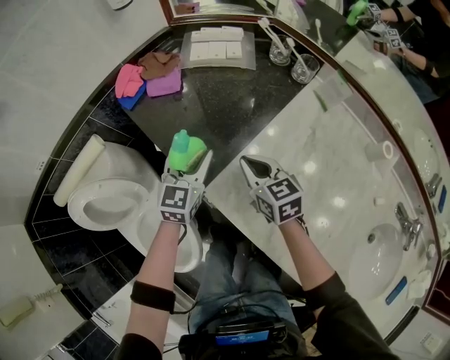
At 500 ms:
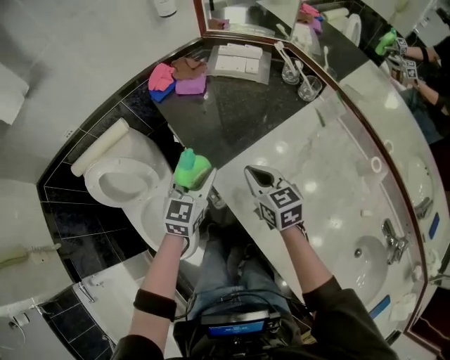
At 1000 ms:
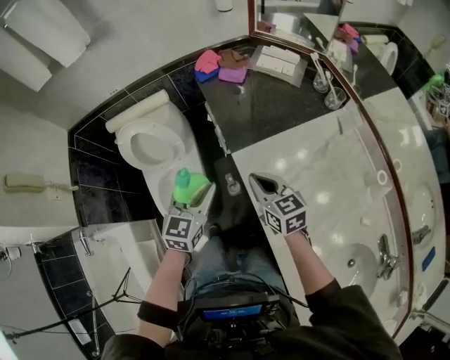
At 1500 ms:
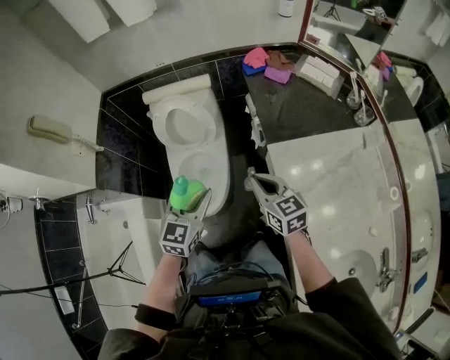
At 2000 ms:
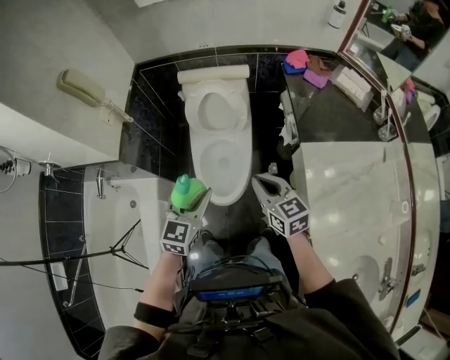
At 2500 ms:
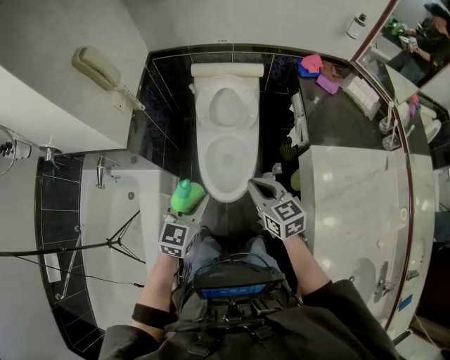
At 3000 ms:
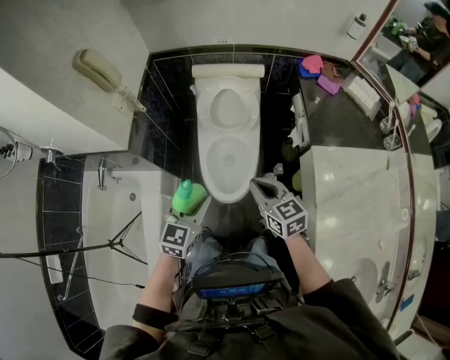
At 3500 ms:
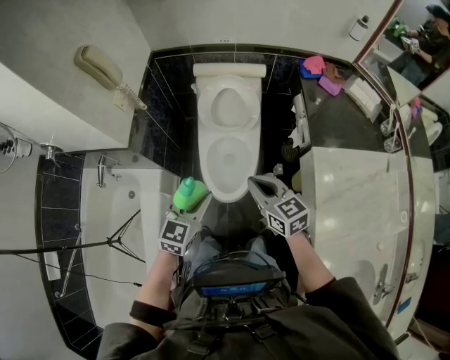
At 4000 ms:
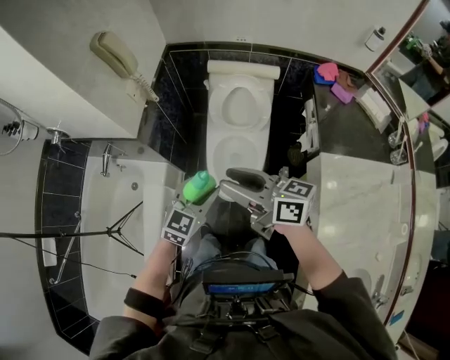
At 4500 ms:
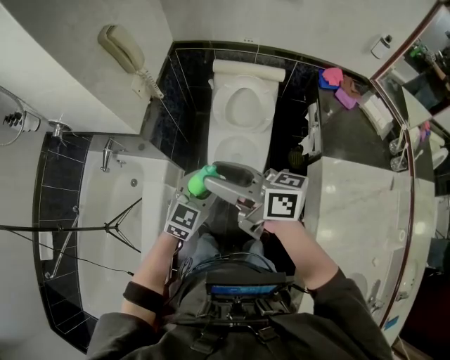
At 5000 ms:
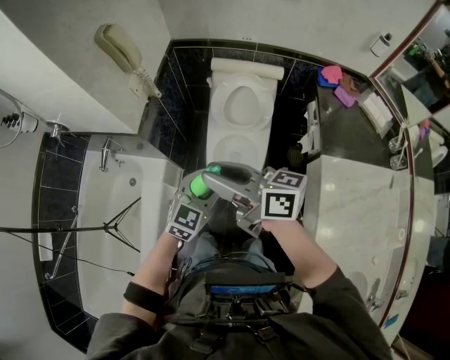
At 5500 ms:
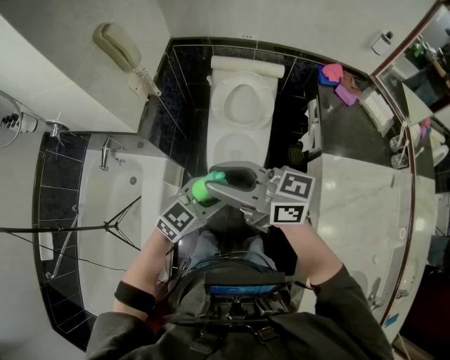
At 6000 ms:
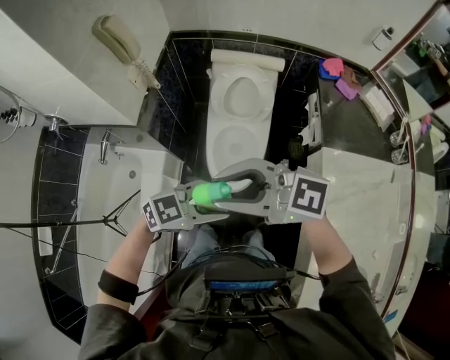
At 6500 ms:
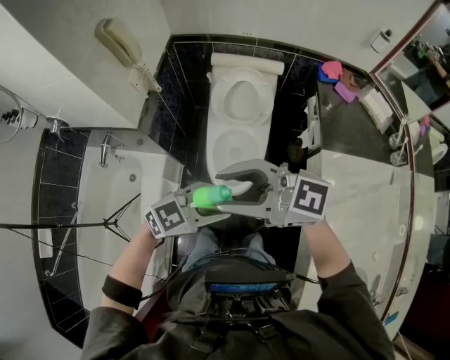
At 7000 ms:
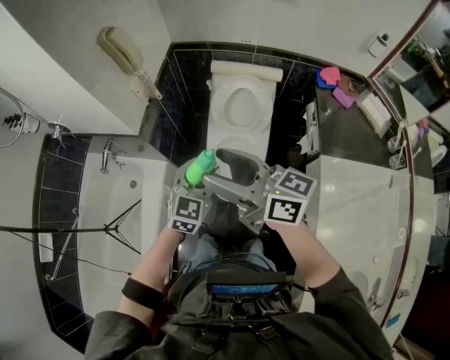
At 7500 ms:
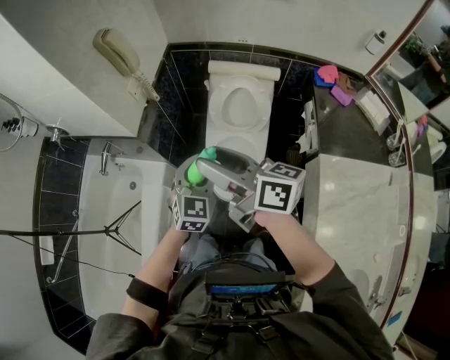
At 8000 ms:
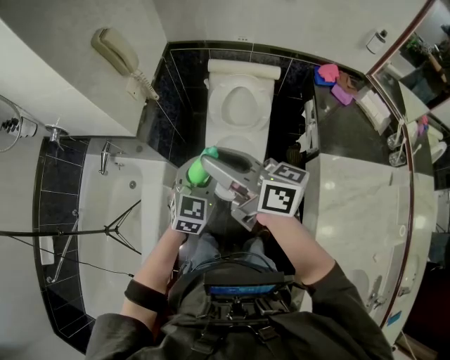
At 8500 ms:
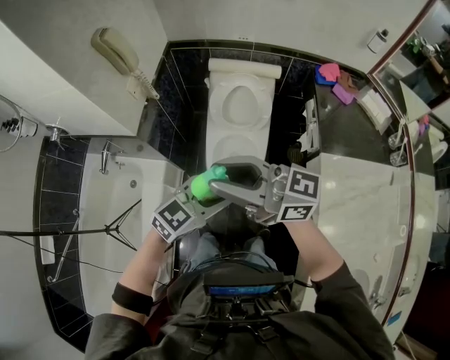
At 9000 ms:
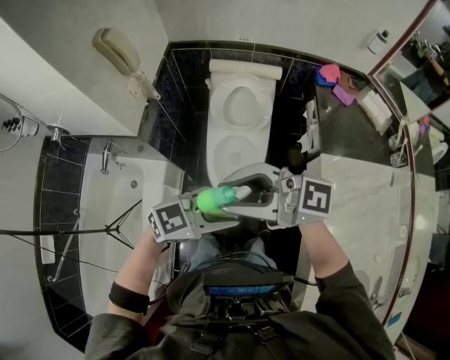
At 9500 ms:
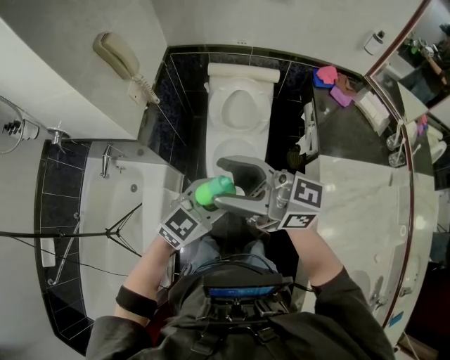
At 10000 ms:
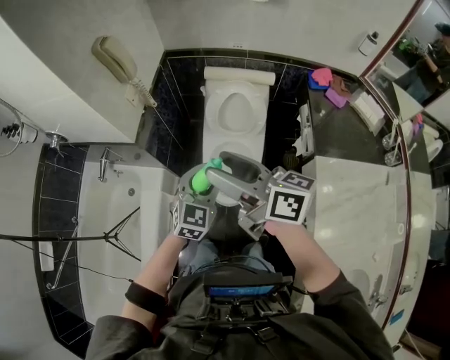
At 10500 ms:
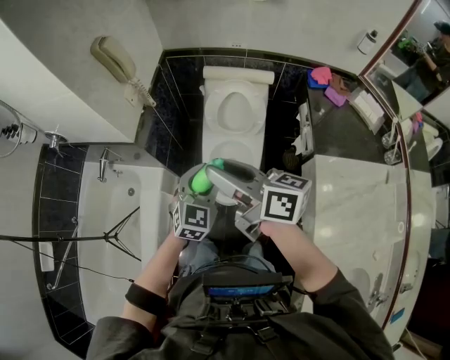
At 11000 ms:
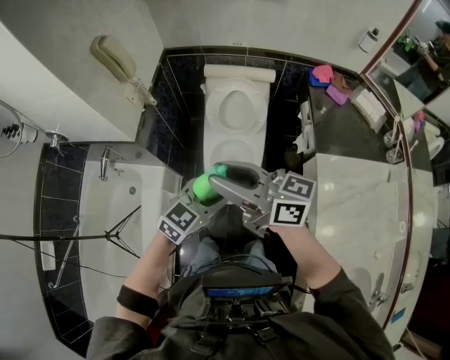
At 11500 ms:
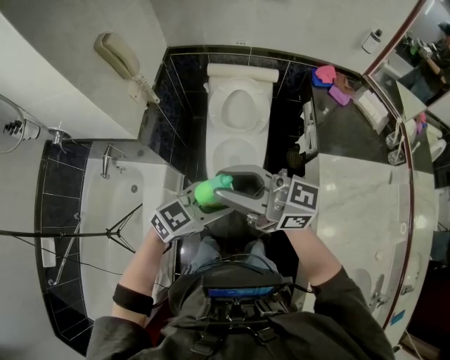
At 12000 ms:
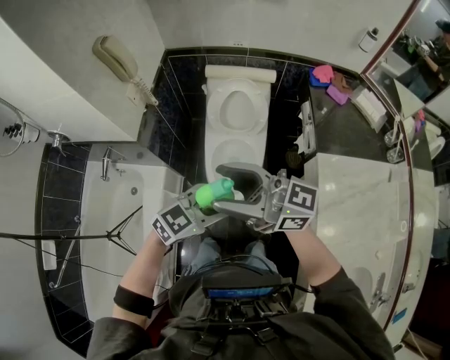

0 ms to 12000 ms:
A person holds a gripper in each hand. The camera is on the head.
0 ms to 2000 ms: The pair of grippers is taken approximately 50 cm. The right gripper changes its angle by approximately 40 degrees; the left gripper turns by roughly 40 degrees.
2000 ms to 4000 ms: The left gripper travels to the left by roughly 5 cm; the right gripper travels to the left and upward by roughly 20 cm, changes its angle by roughly 40 degrees, and opens up.
4000 ms to 6000 ms: The right gripper travels upward by roughly 10 cm, and rotates some 50 degrees; the left gripper changes place by roughly 10 cm, and swivels about 50 degrees.
6000 ms to 8000 ms: The right gripper shifts by some 10 cm, changes its angle by roughly 50 degrees, and opens and closes again; the left gripper shifts by approximately 15 cm, and rotates about 60 degrees.
8000 ms to 10000 ms: The right gripper opens.
10000 ms to 12000 ms: The right gripper moves roughly 5 cm, swivels some 30 degrees, and closes and opens again. Meanwhile the left gripper changes place by some 10 cm, and swivels roughly 40 degrees.

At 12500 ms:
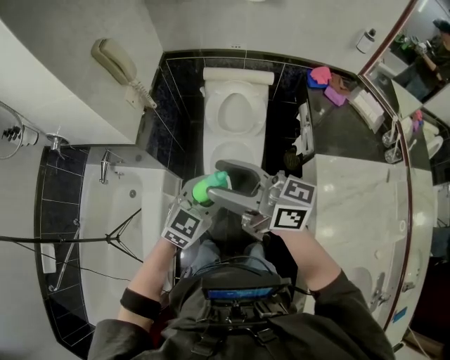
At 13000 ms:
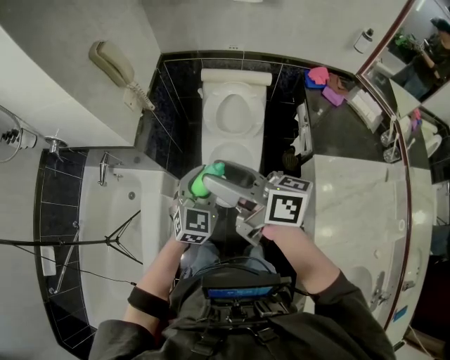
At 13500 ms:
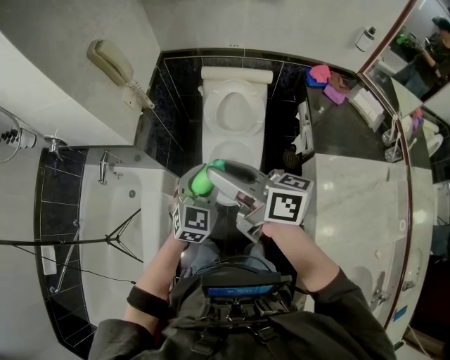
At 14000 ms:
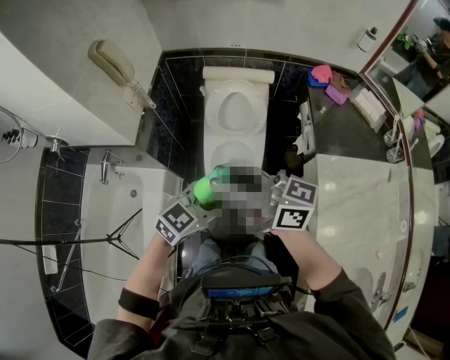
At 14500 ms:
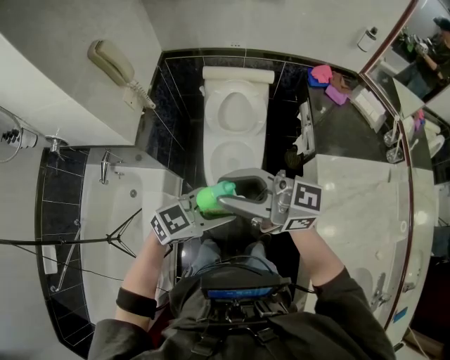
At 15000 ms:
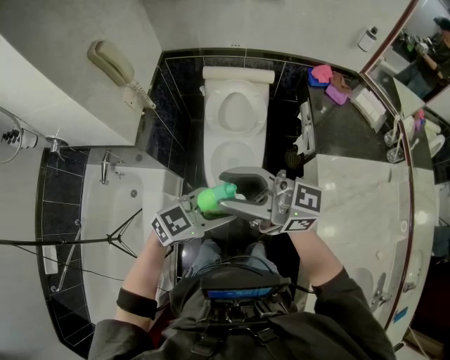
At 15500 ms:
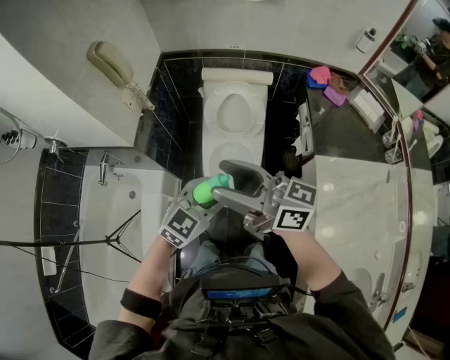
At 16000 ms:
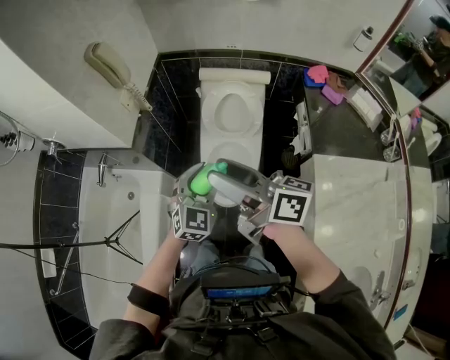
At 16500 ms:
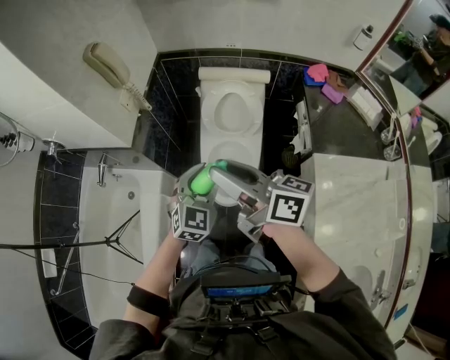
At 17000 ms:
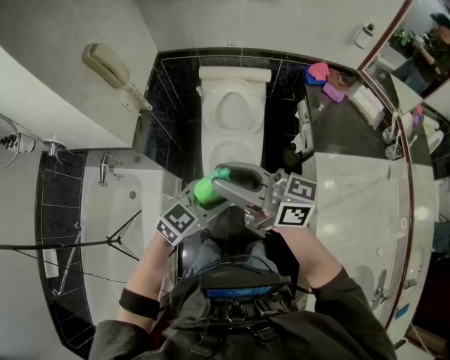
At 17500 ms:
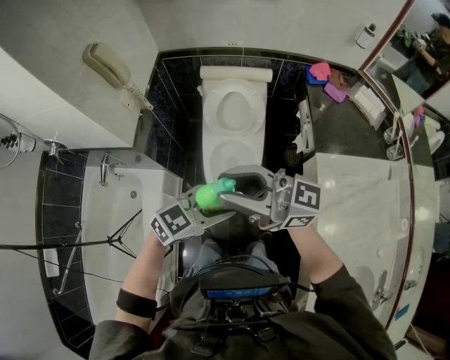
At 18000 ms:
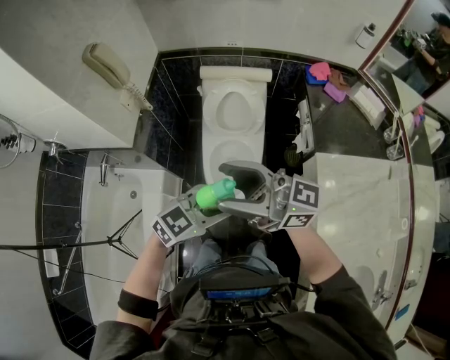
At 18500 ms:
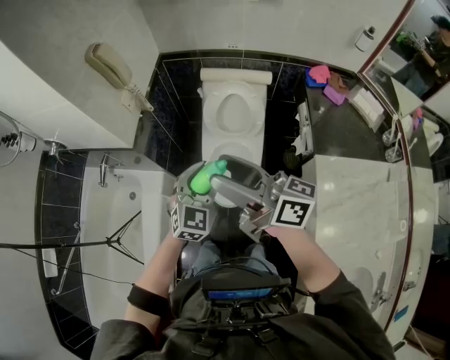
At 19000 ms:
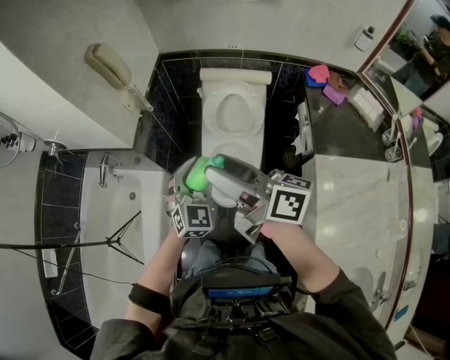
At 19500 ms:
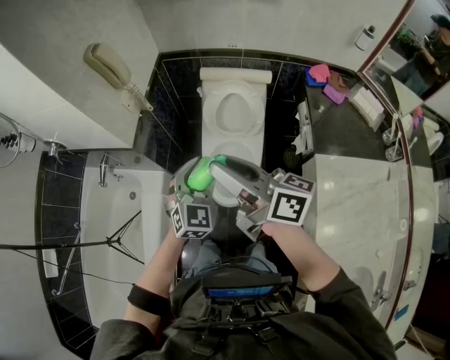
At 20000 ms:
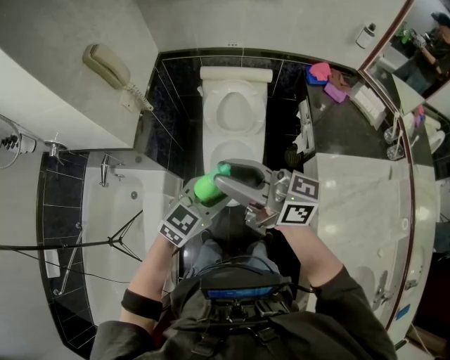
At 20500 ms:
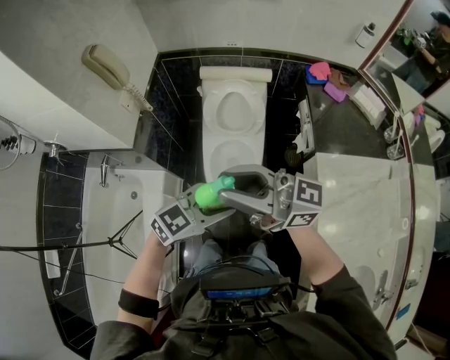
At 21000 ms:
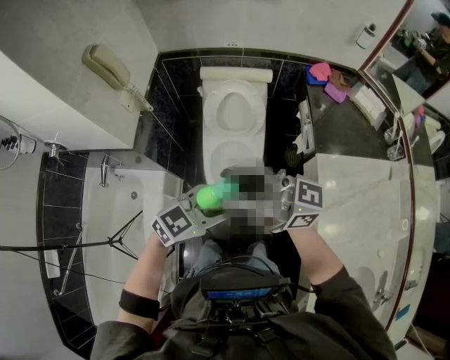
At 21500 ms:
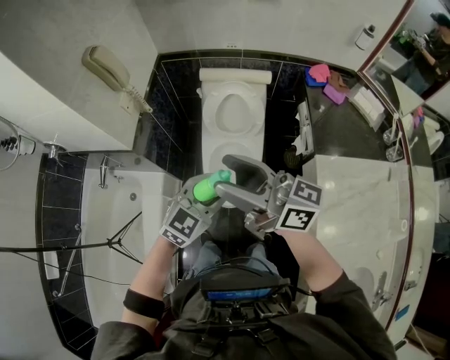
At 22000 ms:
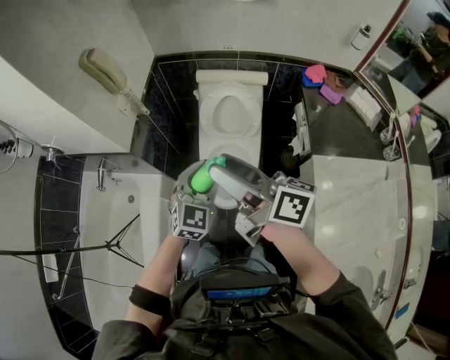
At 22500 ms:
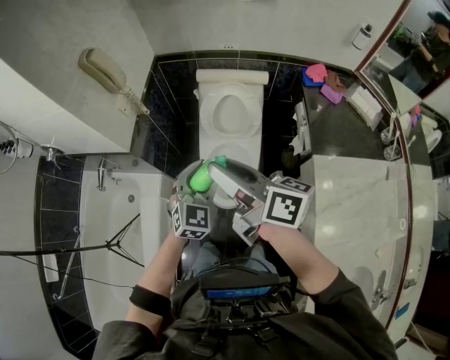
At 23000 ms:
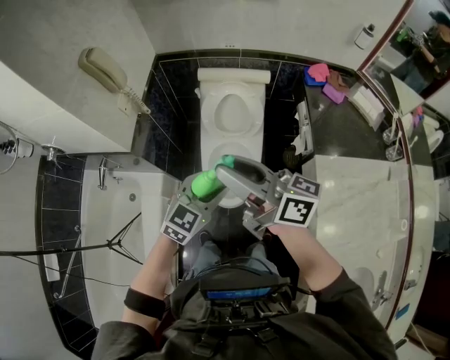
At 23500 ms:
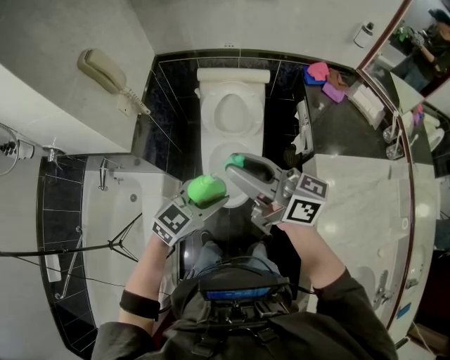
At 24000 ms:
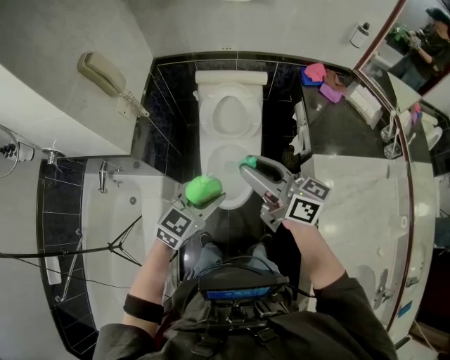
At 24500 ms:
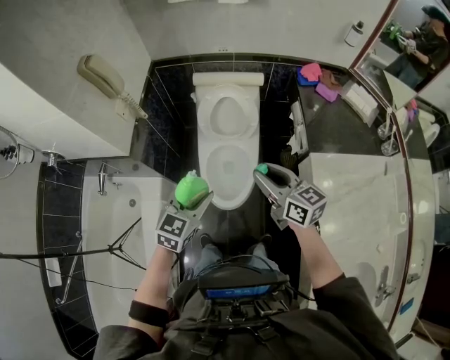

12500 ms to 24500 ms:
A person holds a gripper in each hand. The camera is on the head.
12500 ms to 14500 ms: The right gripper closes its fingers, while the left gripper moves roughly 5 cm, and swivels approximately 30 degrees.
14500 ms to 16500 ms: The right gripper changes place by about 5 cm, changes its angle by approximately 40 degrees, and opens and closes again. Meanwhile the left gripper moves roughly 10 cm, and swivels some 50 degrees.
16500 ms to 18500 ms: The right gripper opens its fingers.
18500 ms to 20500 ms: The right gripper turns by about 30 degrees, and closes up. The left gripper shifts by some 10 cm, and changes its angle by about 50 degrees.
20500 ms to 22500 ms: The left gripper moves approximately 10 cm, and rotates roughly 50 degrees. The right gripper shifts by roughly 5 cm, rotates about 40 degrees, and opens, then closes again.
22500 ms to 24500 ms: The left gripper heads backward, covering about 5 cm, and turns by roughly 20 degrees. Meanwhile the right gripper goes about 15 cm to the right and downward, and turns by approximately 30 degrees.

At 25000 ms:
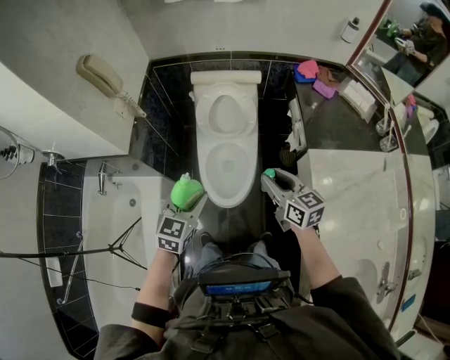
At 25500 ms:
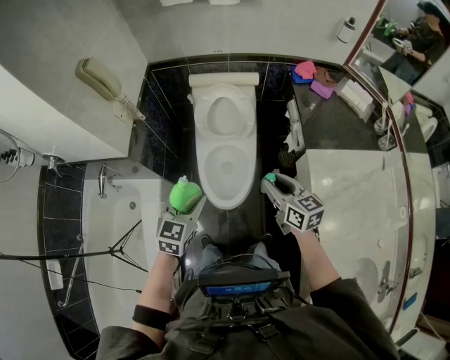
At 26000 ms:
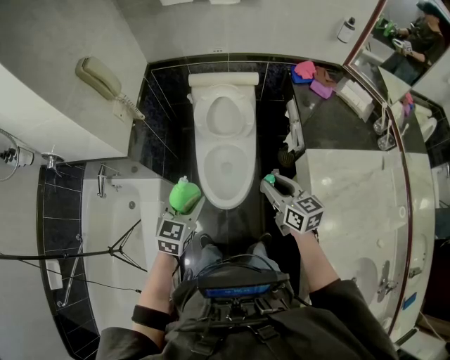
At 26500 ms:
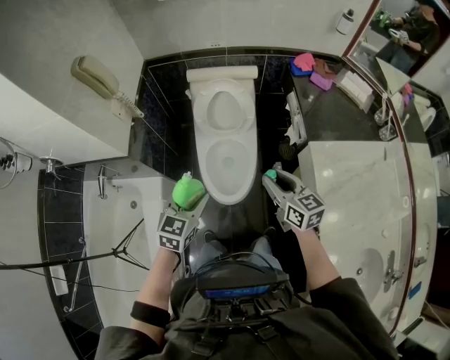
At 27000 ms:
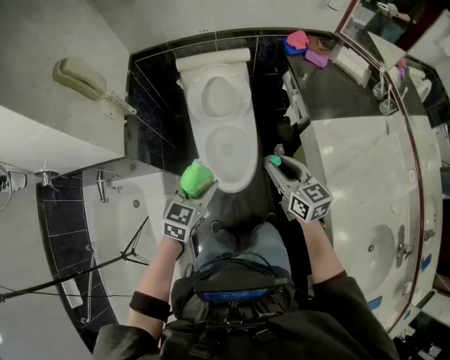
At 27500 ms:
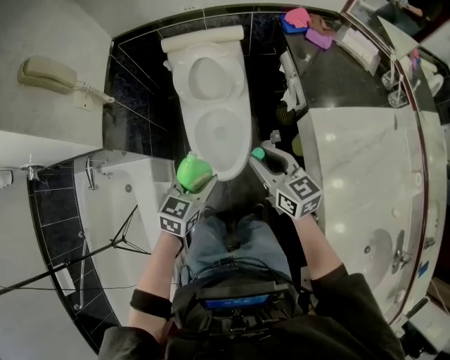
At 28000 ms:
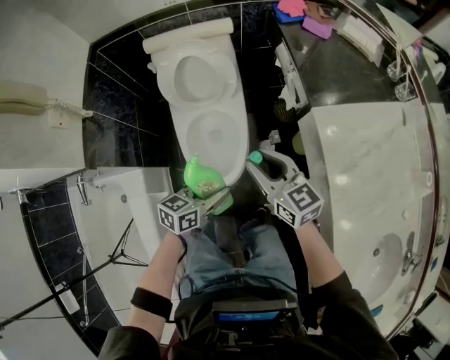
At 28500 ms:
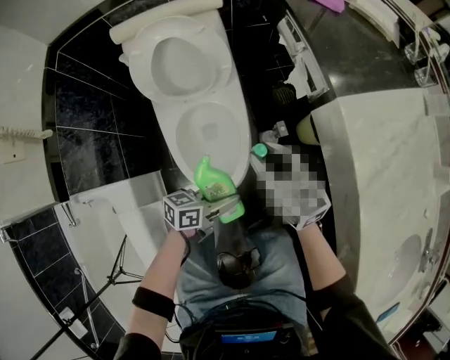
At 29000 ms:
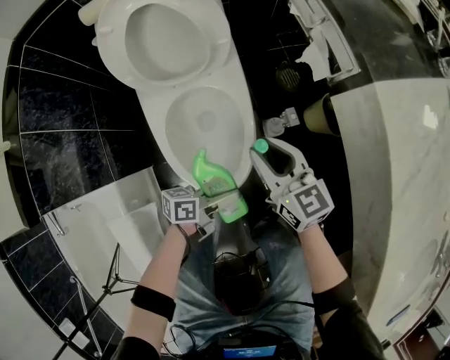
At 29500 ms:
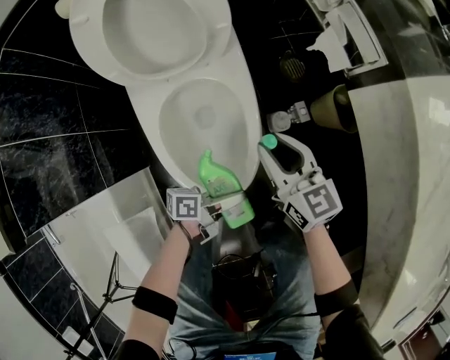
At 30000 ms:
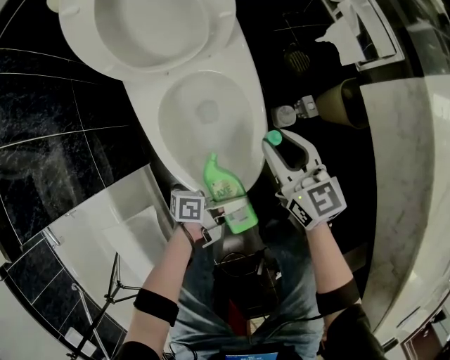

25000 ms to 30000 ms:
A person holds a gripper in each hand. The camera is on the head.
25000 ms to 27500 ms: The left gripper is displaced downward and to the right by roughly 10 cm. Meanwhile the right gripper shifts some 5 cm downward.
27500 ms to 30000 ms: The two grippers go approximately 40 cm downward. The left gripper swivels about 80 degrees.
